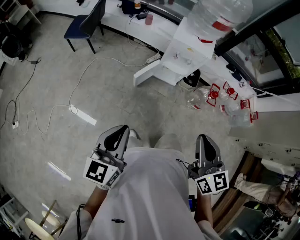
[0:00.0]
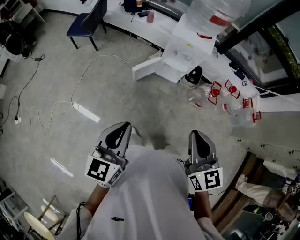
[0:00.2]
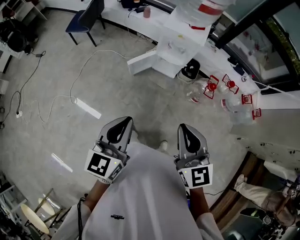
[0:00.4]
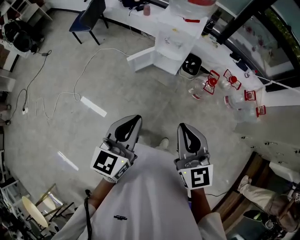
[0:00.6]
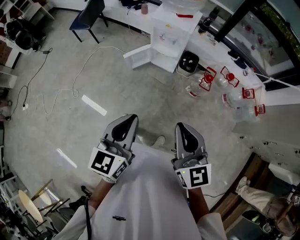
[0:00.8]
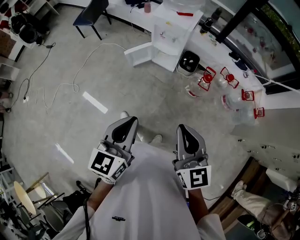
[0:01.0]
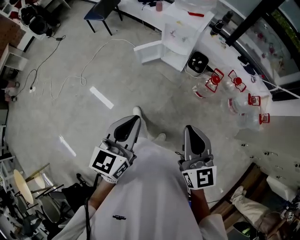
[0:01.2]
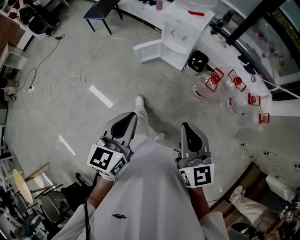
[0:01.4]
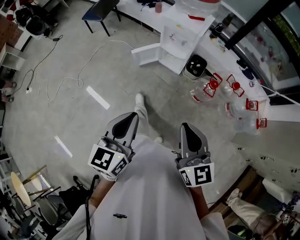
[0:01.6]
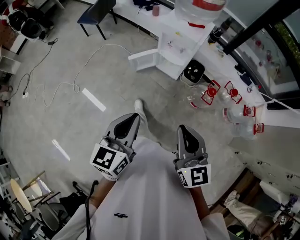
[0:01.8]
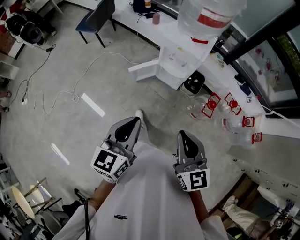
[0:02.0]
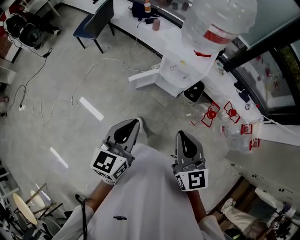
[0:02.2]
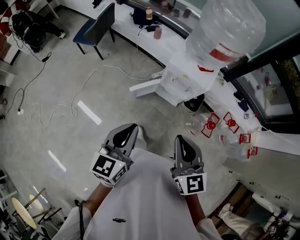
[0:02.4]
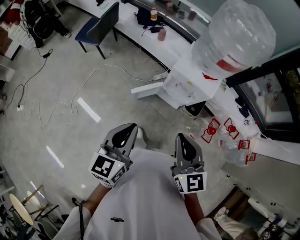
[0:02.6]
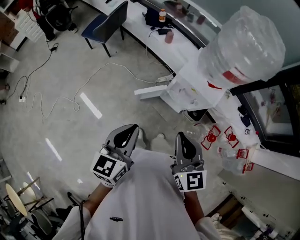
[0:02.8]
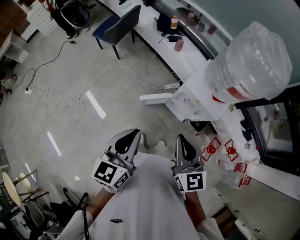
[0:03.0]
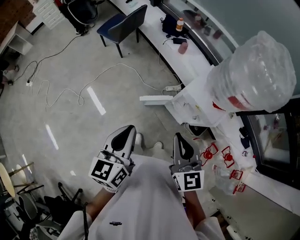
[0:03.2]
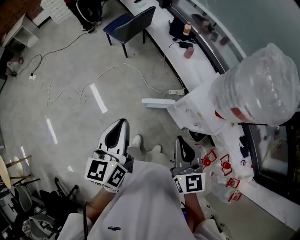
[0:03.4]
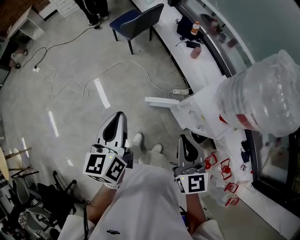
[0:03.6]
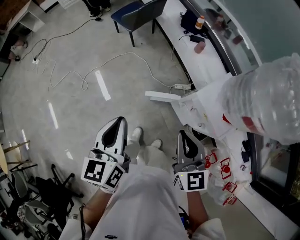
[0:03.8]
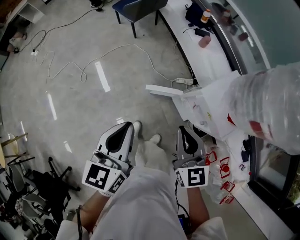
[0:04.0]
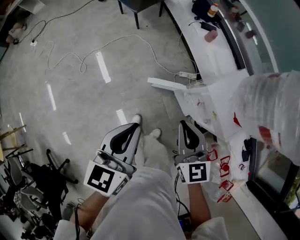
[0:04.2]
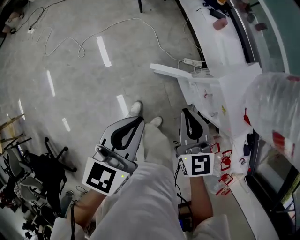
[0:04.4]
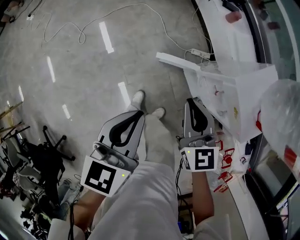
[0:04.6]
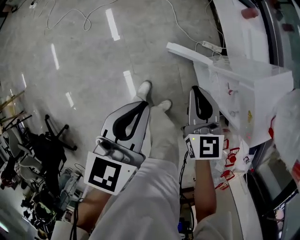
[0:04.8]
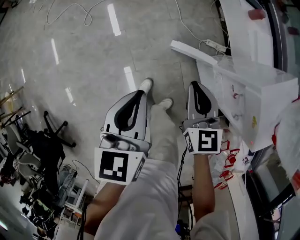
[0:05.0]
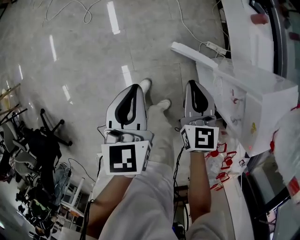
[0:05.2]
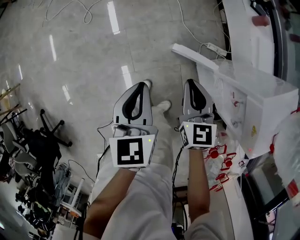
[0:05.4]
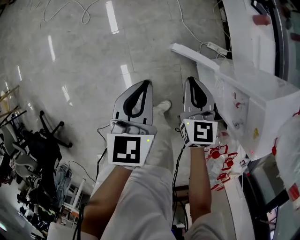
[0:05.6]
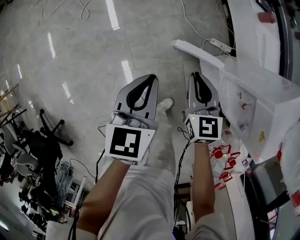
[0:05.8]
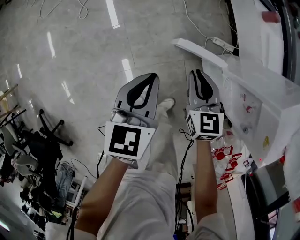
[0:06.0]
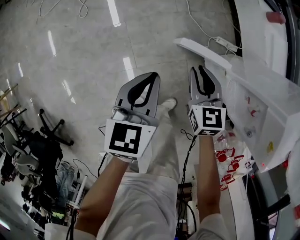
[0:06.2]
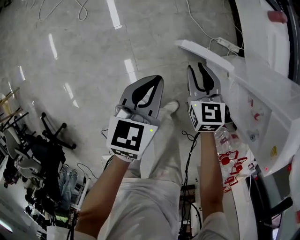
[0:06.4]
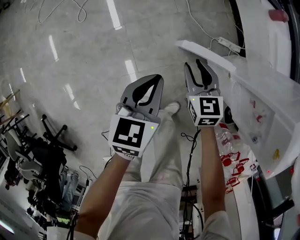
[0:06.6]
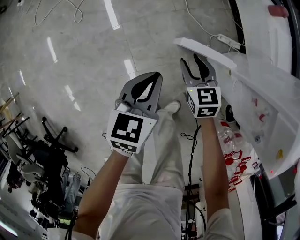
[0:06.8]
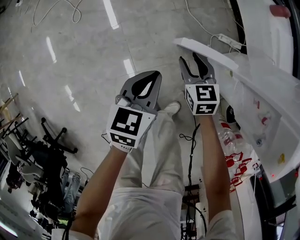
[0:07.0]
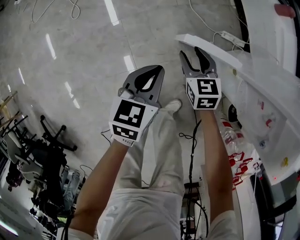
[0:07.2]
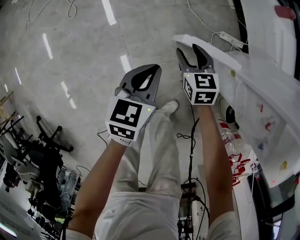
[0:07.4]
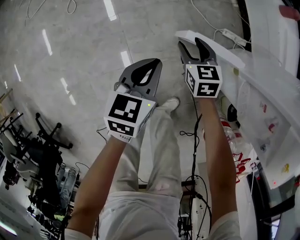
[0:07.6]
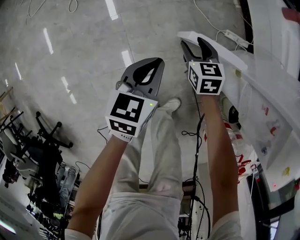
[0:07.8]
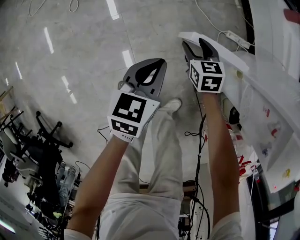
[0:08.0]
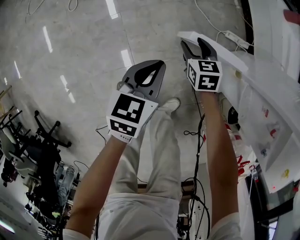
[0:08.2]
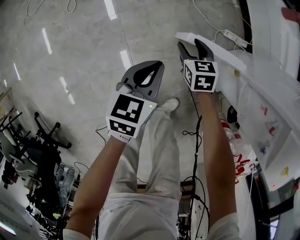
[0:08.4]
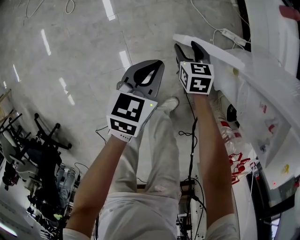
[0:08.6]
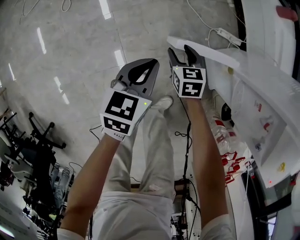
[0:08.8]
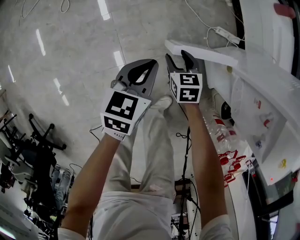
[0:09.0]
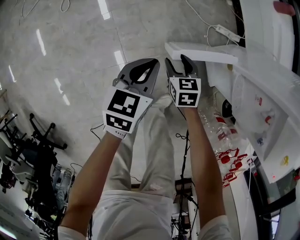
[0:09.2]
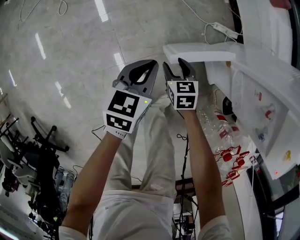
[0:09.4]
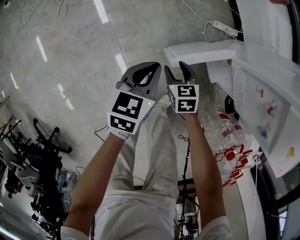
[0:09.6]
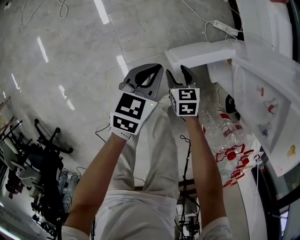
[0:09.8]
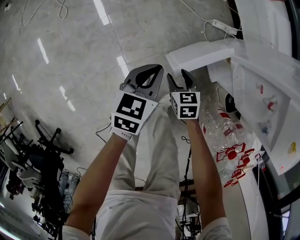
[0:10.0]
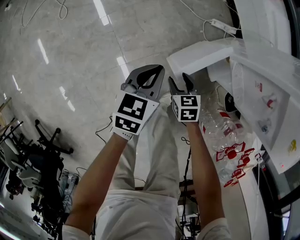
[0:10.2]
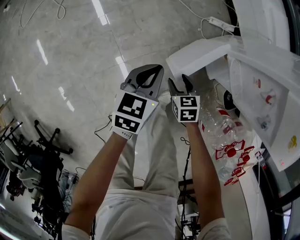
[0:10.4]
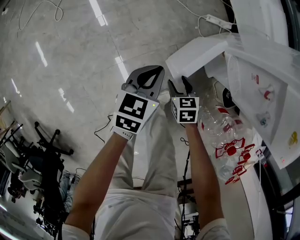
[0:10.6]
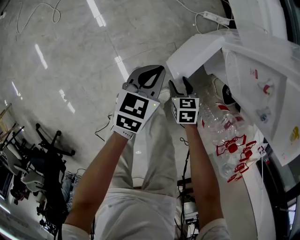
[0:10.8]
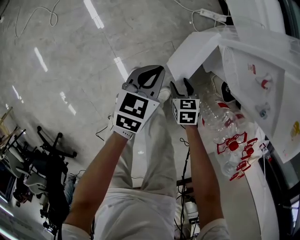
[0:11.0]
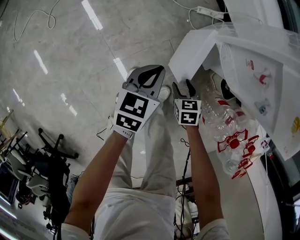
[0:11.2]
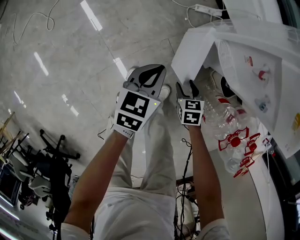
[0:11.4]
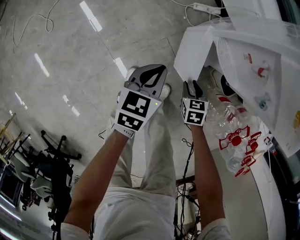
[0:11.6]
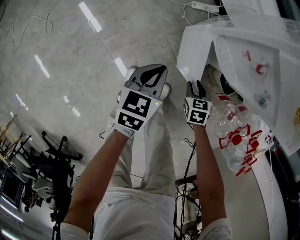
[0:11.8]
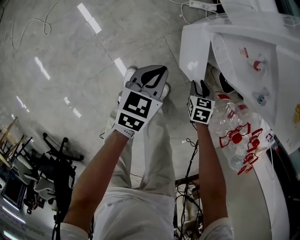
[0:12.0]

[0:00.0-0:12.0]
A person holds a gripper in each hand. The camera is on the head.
0:00.0 to 0:01.6: Both grippers travel together to the right and backward, roughly 25 cm.
0:01.6 to 0:03.0: Both grippers travel together forward, about 35 cm.
0:03.0 to 0:04.4: The left gripper heads downward and forward, covering roughly 10 cm. The right gripper shifts roughly 20 cm downward and forward, and turns by some 20 degrees.
0:04.4 to 0:06.0: The two grippers go some 25 cm downward. The left gripper turns by some 20 degrees.
0:06.0 to 0:07.6: Both grippers move downward, about 20 cm. The right gripper opens its fingers.
0:07.6 to 0:09.0: The right gripper heads backward, covering roughly 5 cm.
0:09.0 to 0:10.4: The right gripper shifts some 15 cm backward and to the right; the left gripper shifts about 10 cm to the right and backward.
0:10.4 to 0:12.0: The right gripper ends up some 20 cm from where it was, rotates about 20 degrees, and closes its fingers; the left gripper shifts by approximately 10 cm.

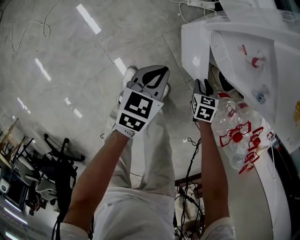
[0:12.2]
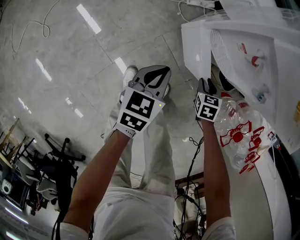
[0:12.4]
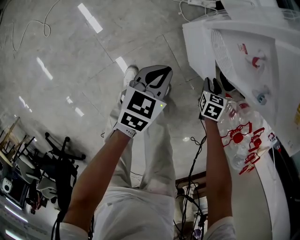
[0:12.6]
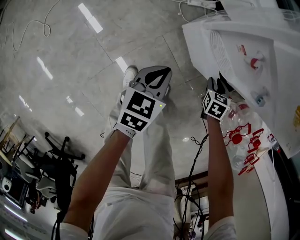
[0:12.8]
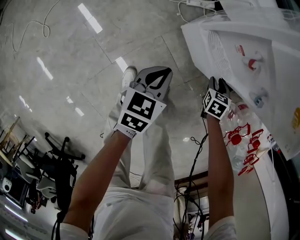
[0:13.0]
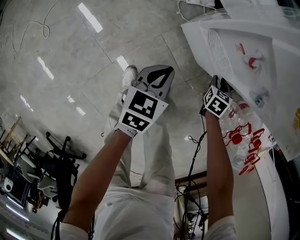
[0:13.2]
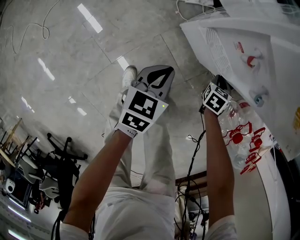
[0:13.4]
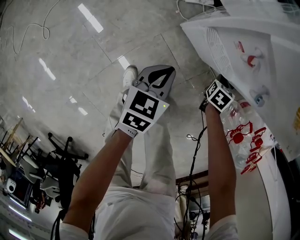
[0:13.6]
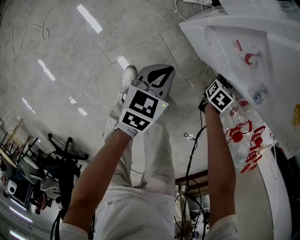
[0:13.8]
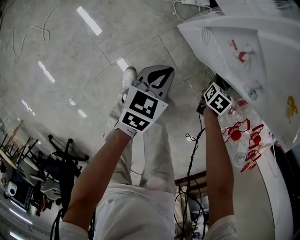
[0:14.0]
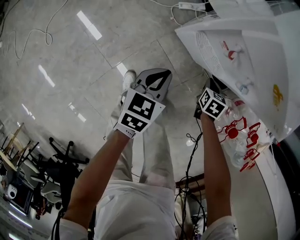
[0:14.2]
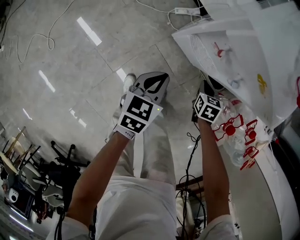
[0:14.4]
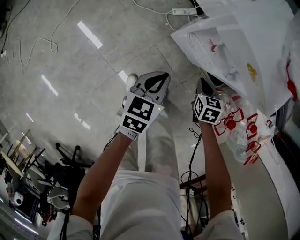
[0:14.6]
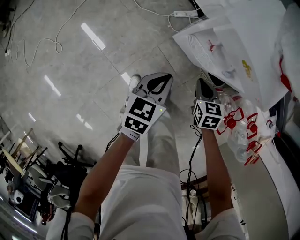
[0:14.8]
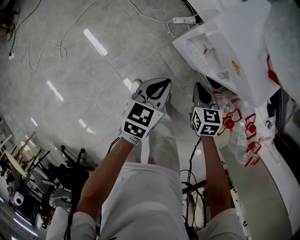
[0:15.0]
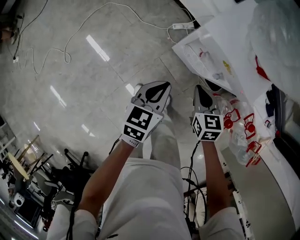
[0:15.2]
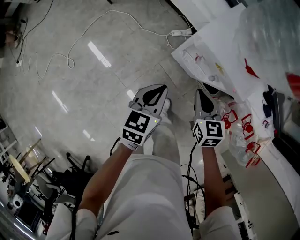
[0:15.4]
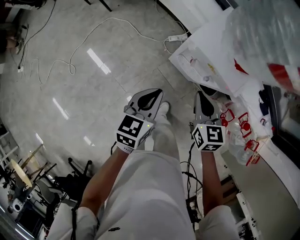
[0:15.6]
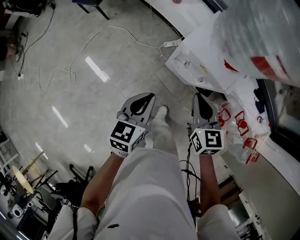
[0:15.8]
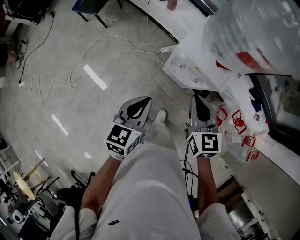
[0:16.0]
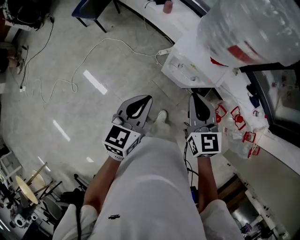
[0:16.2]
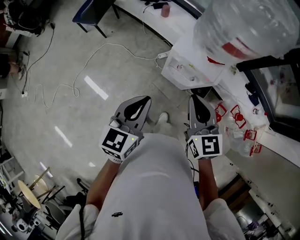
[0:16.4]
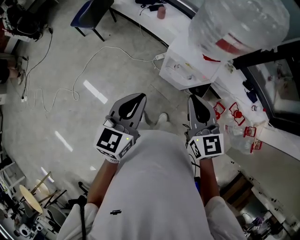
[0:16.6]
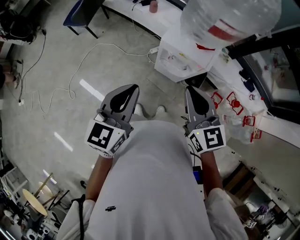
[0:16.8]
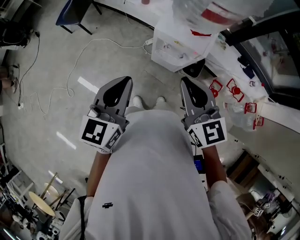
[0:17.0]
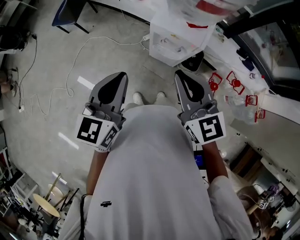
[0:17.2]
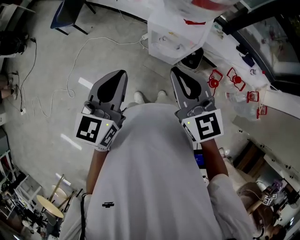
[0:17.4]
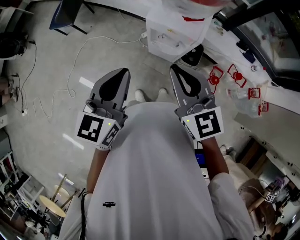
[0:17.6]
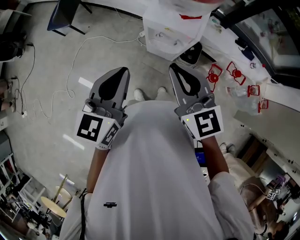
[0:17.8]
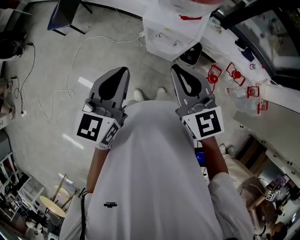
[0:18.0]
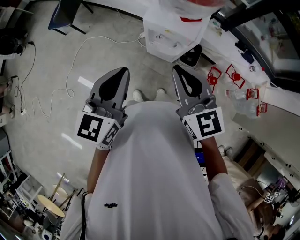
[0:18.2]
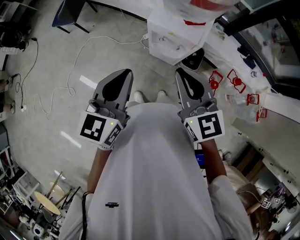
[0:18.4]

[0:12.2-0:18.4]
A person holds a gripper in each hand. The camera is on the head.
0:12.2 to 0:13.8: The right gripper moves forward and to the right, approximately 10 cm, changes its angle by some 30 degrees, and closes.
0:13.8 to 0:15.4: The grippers both shift upward by approximately 35 cm. The right gripper turns by approximately 40 degrees.
0:15.4 to 0:16.8: Both grippers move upward, about 30 cm. The right gripper turns by some 30 degrees; the left gripper rotates about 30 degrees.
0:16.8 to 0:18.4: The grippers move only a little.

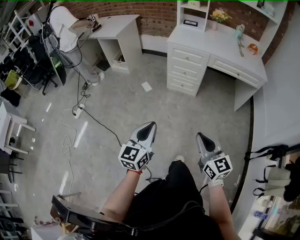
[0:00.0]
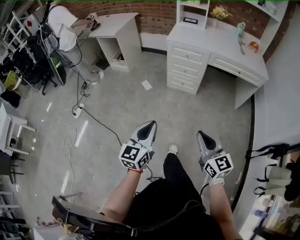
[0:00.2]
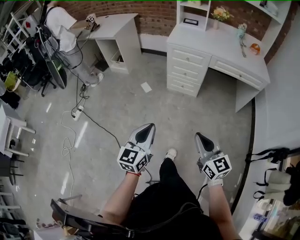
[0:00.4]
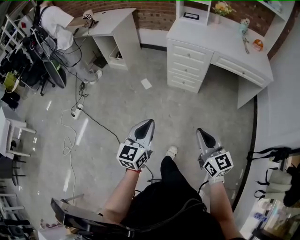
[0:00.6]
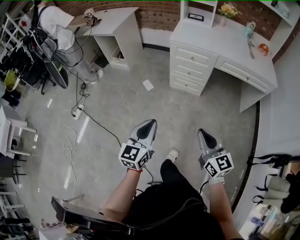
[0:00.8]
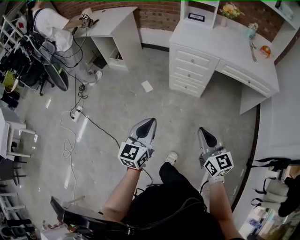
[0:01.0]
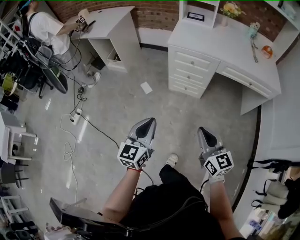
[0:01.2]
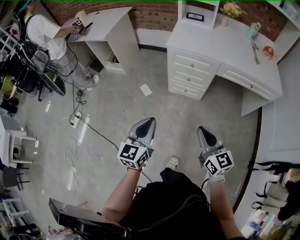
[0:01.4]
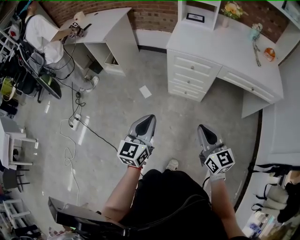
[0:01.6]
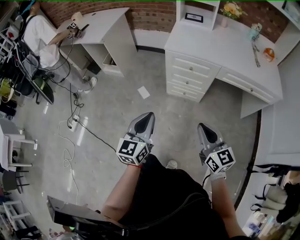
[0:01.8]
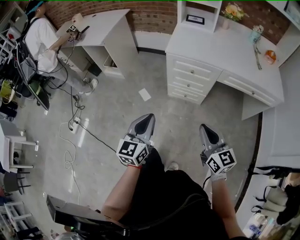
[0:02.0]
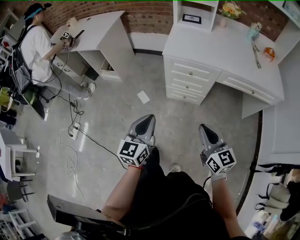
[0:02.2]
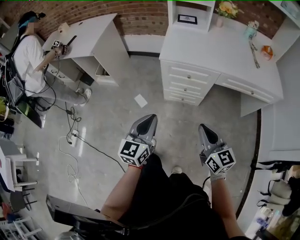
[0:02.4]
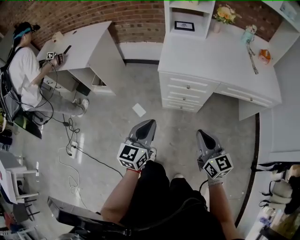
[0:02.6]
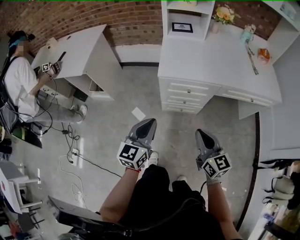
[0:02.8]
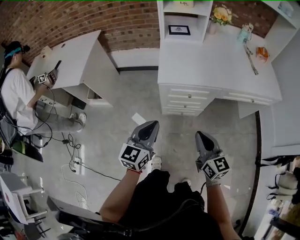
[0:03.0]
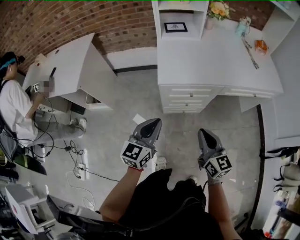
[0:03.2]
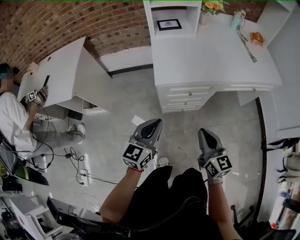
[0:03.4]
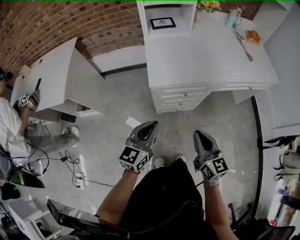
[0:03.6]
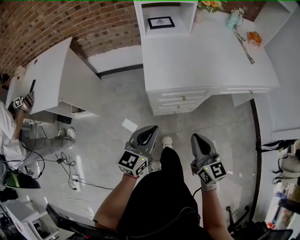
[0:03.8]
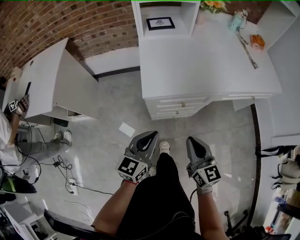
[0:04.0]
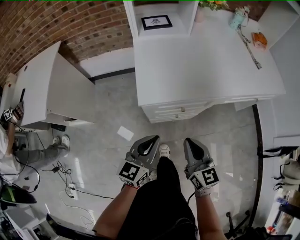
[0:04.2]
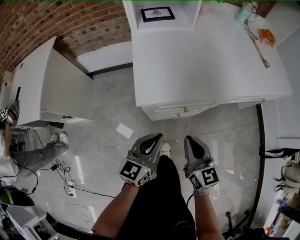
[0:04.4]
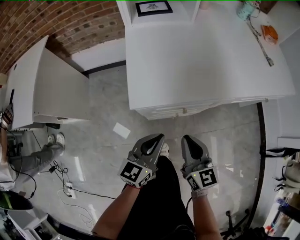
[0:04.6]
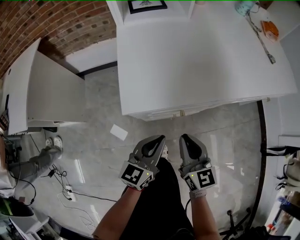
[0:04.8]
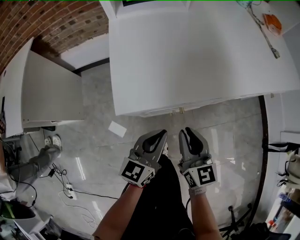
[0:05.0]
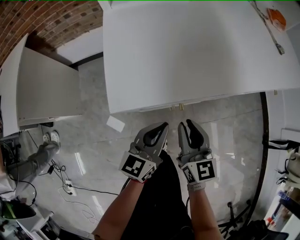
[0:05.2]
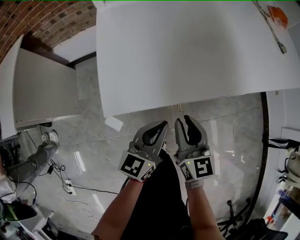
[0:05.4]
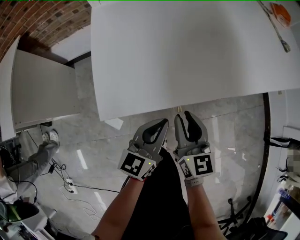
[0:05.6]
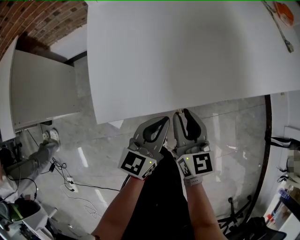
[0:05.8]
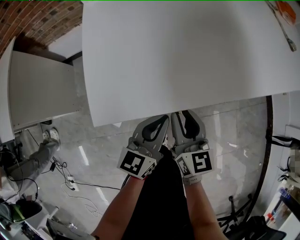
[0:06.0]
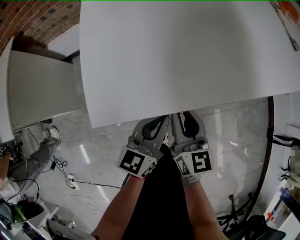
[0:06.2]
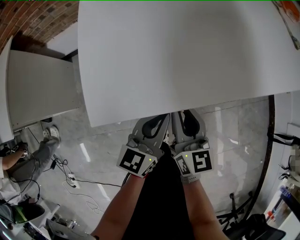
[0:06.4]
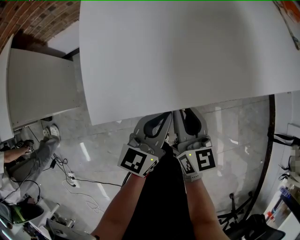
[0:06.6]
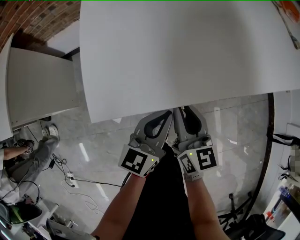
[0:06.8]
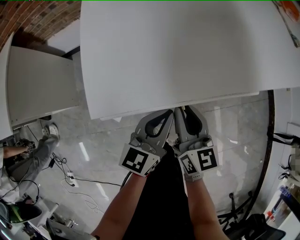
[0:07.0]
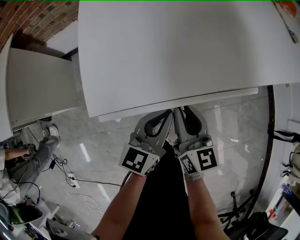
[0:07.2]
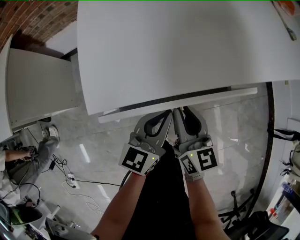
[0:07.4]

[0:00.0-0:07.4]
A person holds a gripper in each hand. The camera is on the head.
0:00.0 to 0:01.4: Both grippers travel together forward, some 30 cm.
0:01.4 to 0:03.0: The two grippers go some 25 cm forward. The left gripper changes its angle by about 20 degrees.
0:03.0 to 0:04.4: Both grippers travel together forward and downward, roughly 20 cm.
0:04.4 to 0:06.0: The left gripper heads downward, forward and to the right, covering some 15 cm; the right gripper shifts some 15 cm forward and downward, and opens up.
0:06.0 to 0:07.4: The grippers make only small movements.
